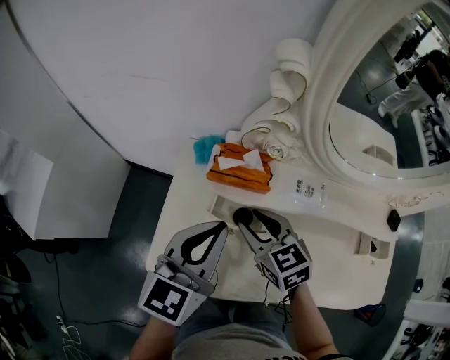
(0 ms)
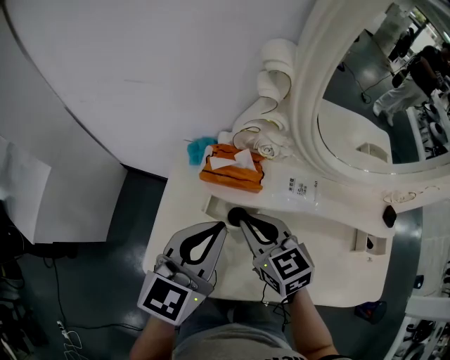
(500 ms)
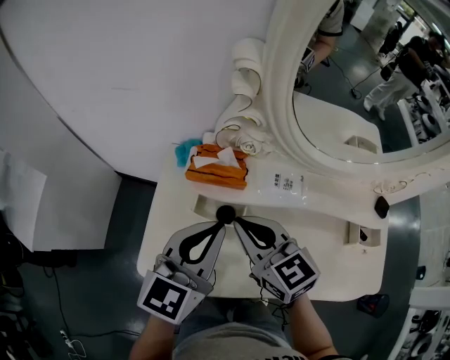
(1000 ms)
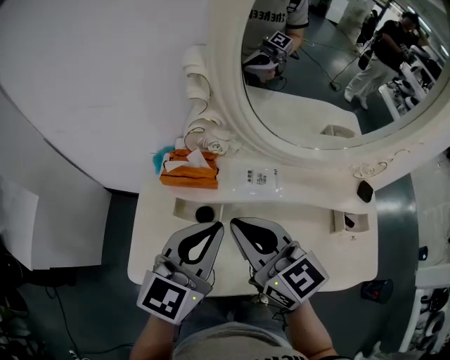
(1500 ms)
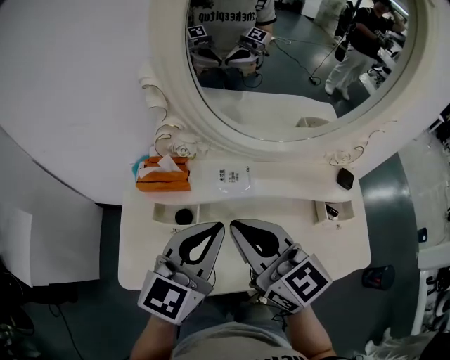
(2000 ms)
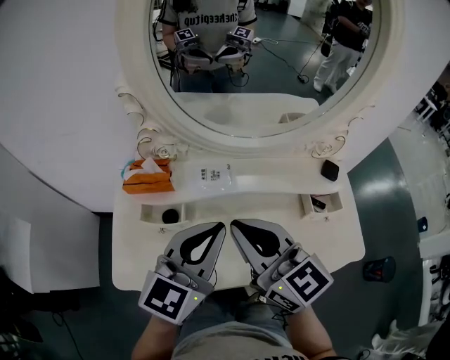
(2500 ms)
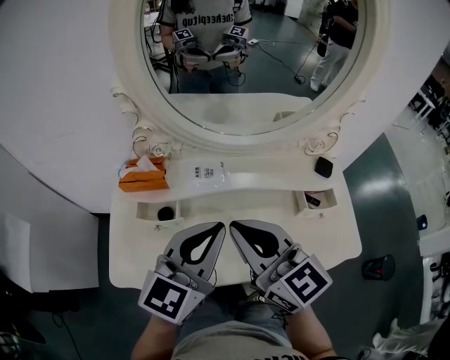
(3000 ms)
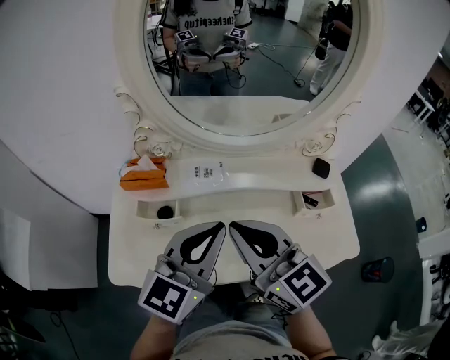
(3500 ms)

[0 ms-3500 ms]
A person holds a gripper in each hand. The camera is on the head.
0 ms to 2000 ms: The left gripper moves to the right, roughly 15 cm, while the right gripper shifts some 25 cm upward, to the right and backward, rotates approximately 30 degrees, and closes its fingers.
2000 ms to 3500 ms: Both grippers move to the right, roughly 5 cm.

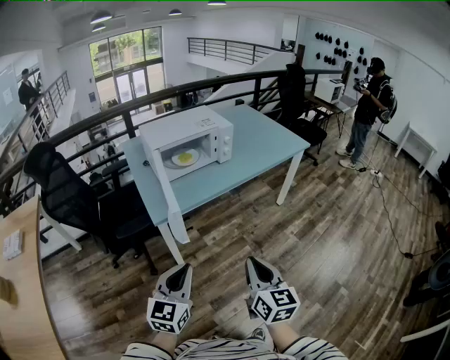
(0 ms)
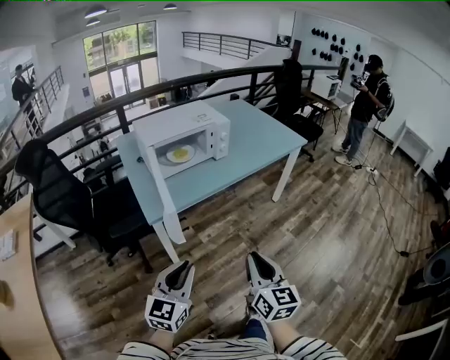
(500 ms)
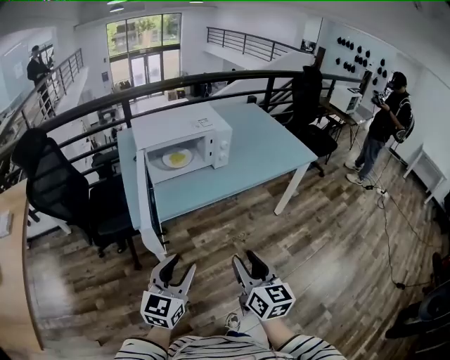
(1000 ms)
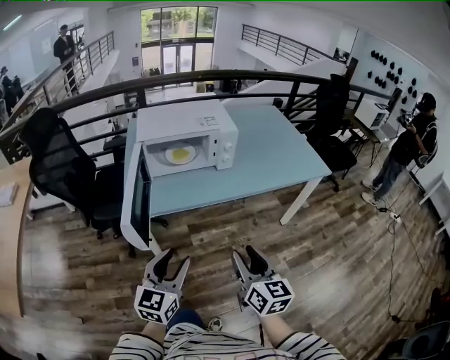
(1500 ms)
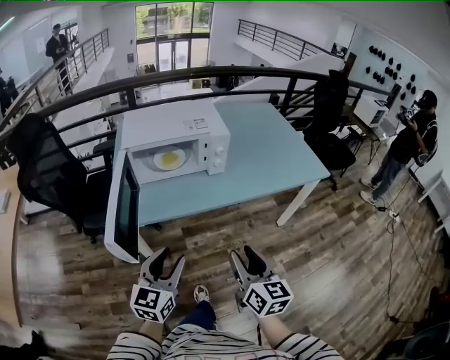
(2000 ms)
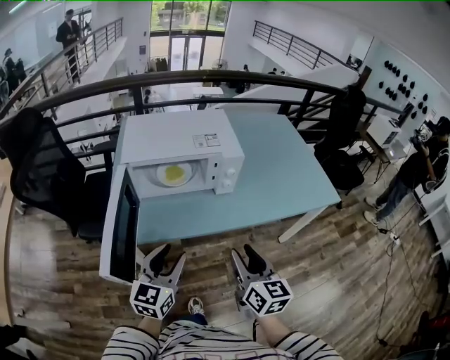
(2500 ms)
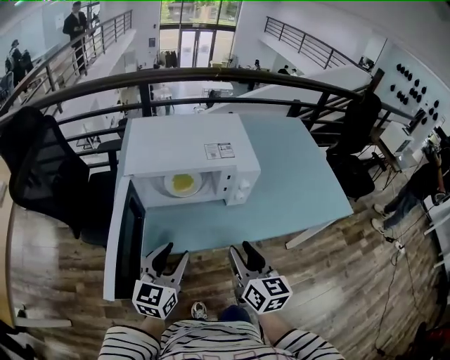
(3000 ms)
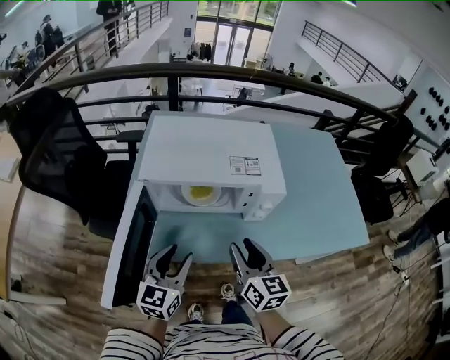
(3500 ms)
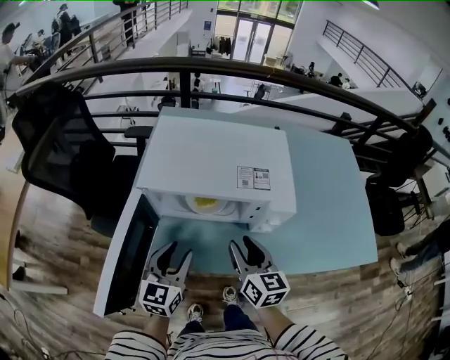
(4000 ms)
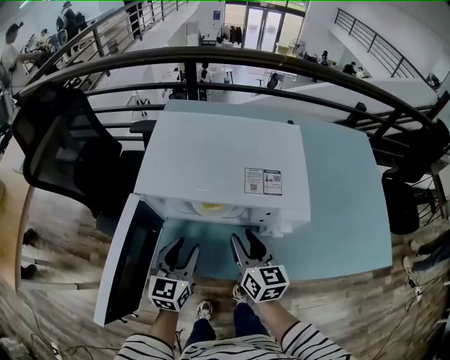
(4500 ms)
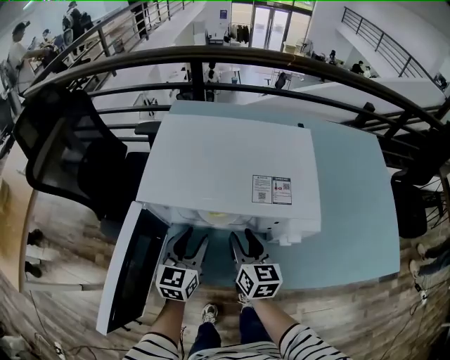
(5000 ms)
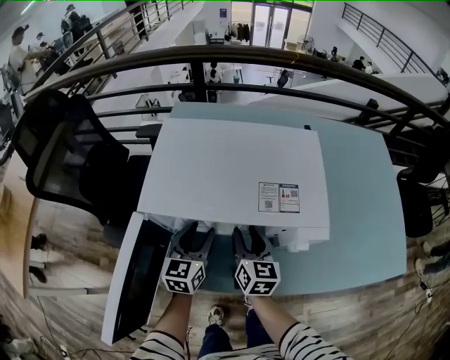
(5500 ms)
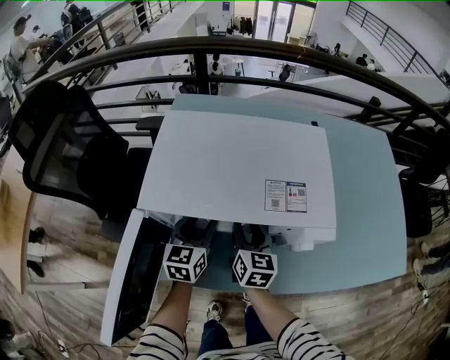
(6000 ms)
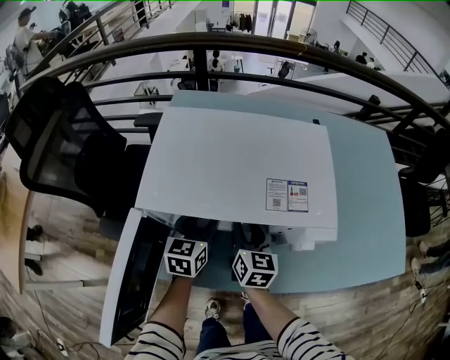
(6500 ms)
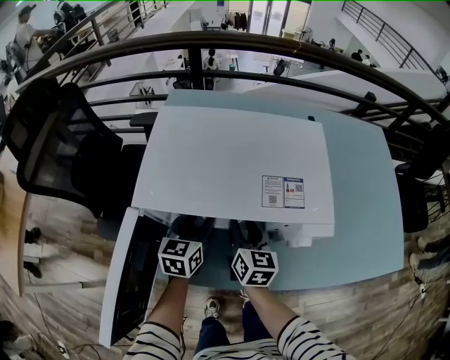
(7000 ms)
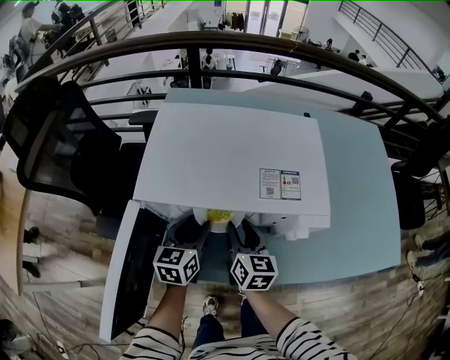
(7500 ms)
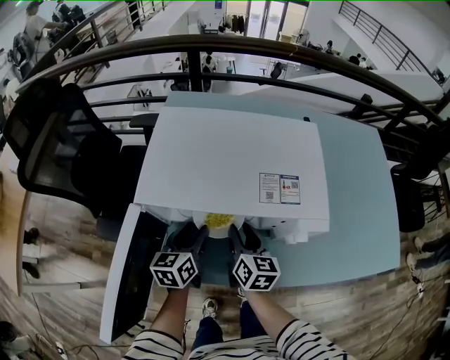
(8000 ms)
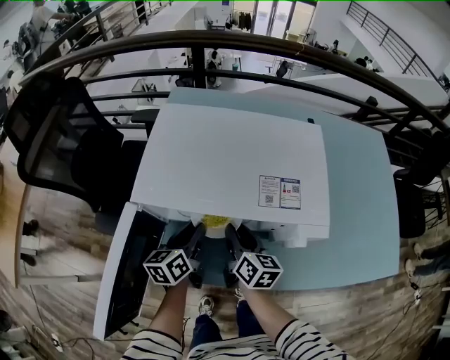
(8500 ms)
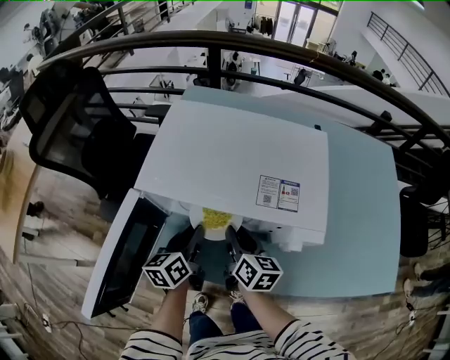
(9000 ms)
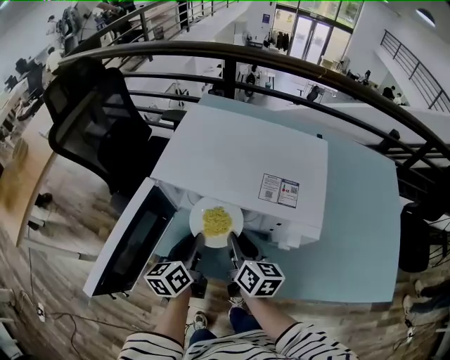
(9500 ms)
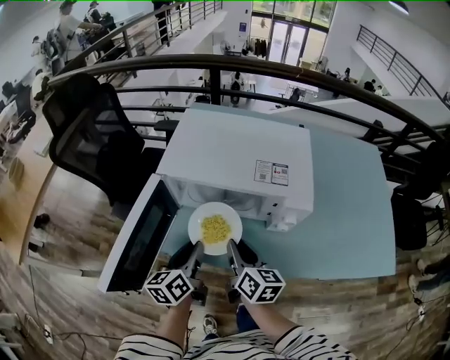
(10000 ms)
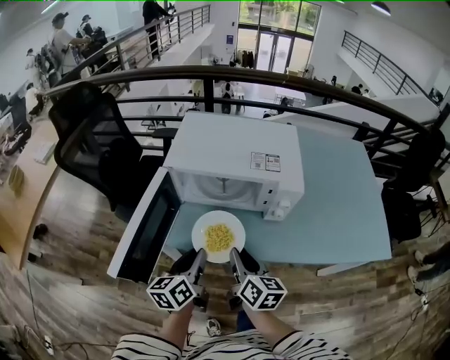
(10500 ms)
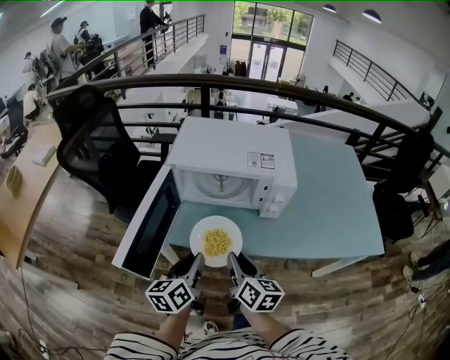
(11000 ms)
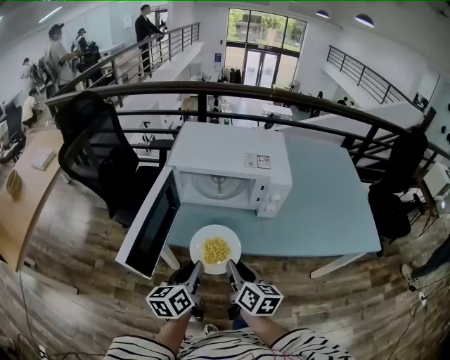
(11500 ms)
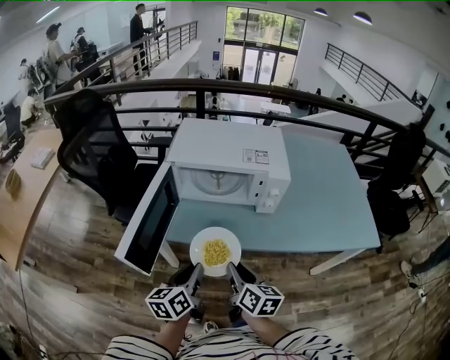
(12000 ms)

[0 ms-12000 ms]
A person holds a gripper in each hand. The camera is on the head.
0 ms to 2000 ms: Both grippers travel together forward and to the right, about 30 cm. The right gripper opens its fingers. Meanwhile the left gripper opens up.
2000 ms to 4000 ms: Both grippers travel together forward, about 30 cm. The left gripper rotates some 20 degrees; the right gripper turns by about 20 degrees.
4000 ms to 6000 ms: The two grippers go roughly 20 cm forward and downward.
6000 ms to 8000 ms: There are only small adjustments of the grippers.
8000 ms to 10000 ms: Both grippers move backward and upward, approximately 15 cm. The left gripper closes up.
10000 ms to 12000 ms: Both grippers travel together backward, roughly 15 cm.

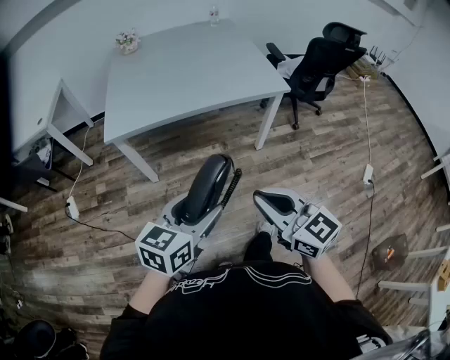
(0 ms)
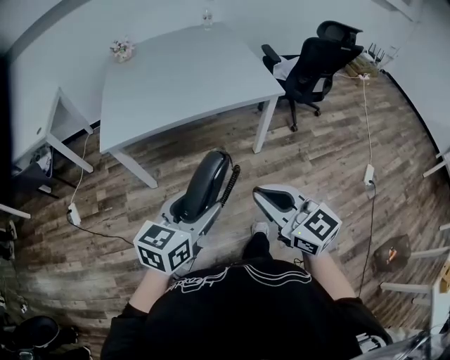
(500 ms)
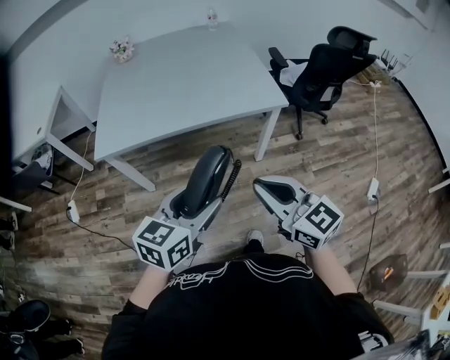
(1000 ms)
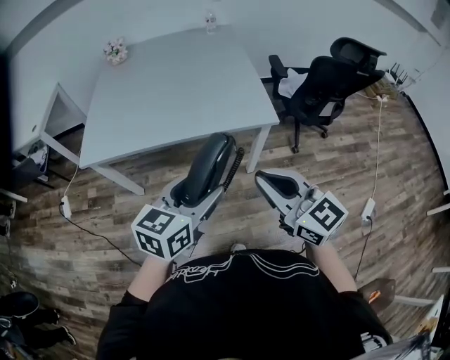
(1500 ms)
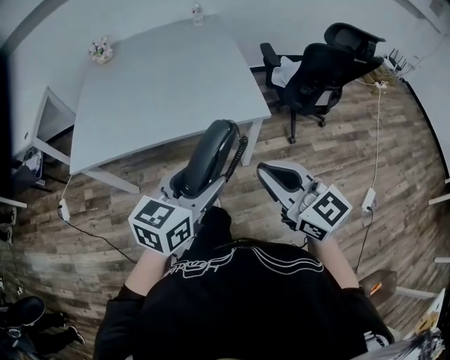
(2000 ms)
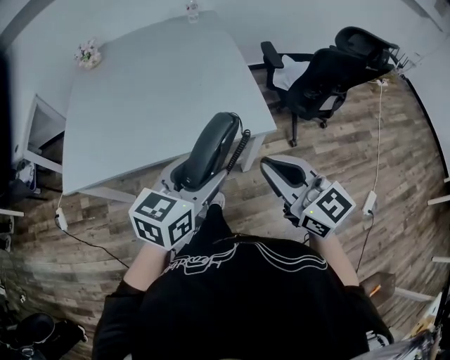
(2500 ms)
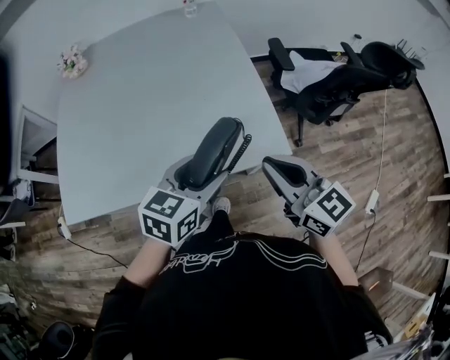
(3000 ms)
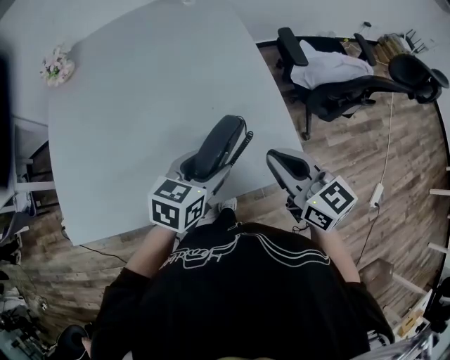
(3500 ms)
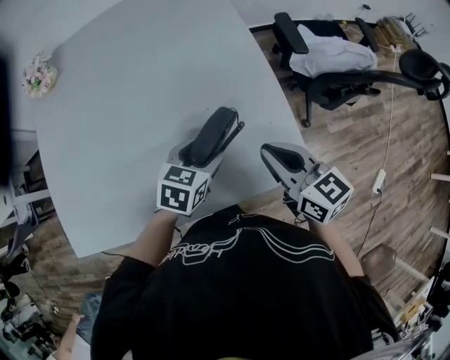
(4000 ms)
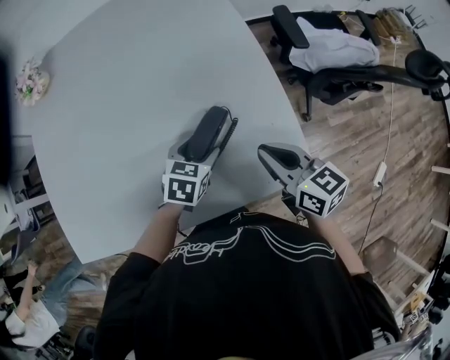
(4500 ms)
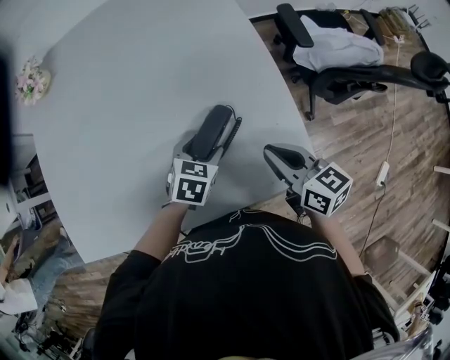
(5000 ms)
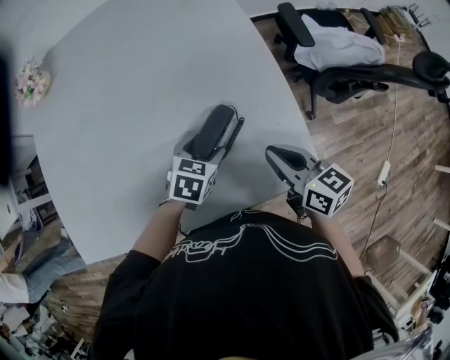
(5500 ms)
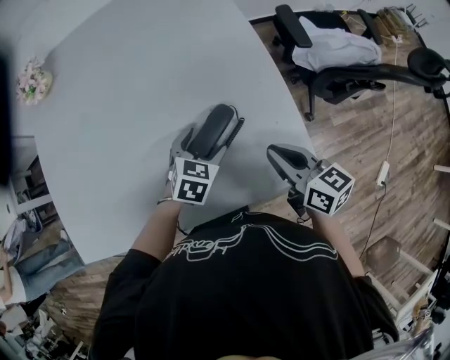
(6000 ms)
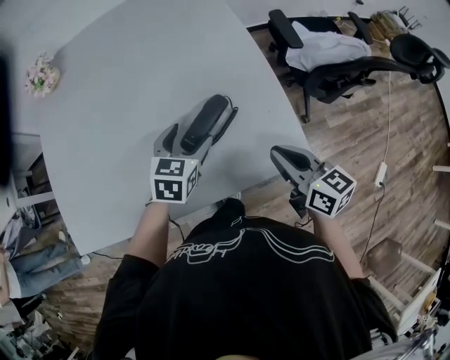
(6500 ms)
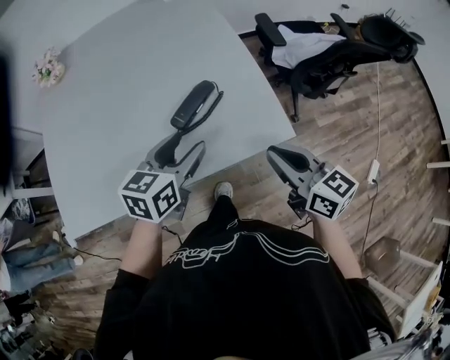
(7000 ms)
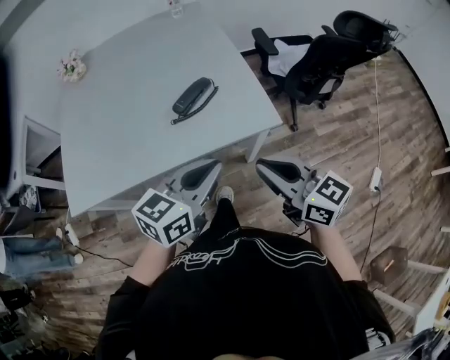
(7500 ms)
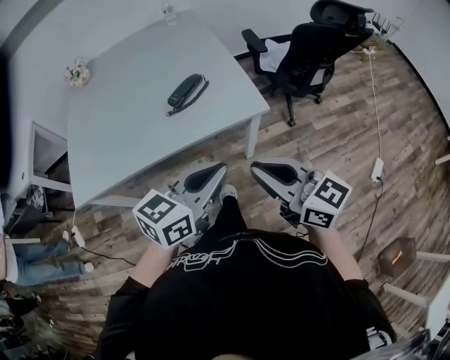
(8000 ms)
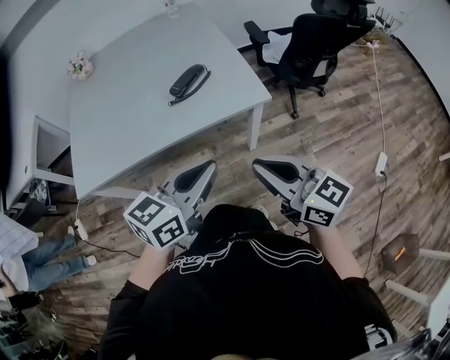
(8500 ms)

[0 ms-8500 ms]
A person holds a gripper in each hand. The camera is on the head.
0 ms to 2000 ms: The right gripper shifts about 35 cm forward and to the right; the left gripper travels to the right and forward by roughly 35 cm.
2000 ms to 4000 ms: The two grippers travel together, forward, about 40 cm. The right gripper rotates some 20 degrees. The left gripper travels downward by some 20 cm, and rotates roughly 30 degrees.
4000 ms to 6500 ms: The right gripper moves approximately 5 cm; the left gripper goes downward and returns, approximately 5 cm each way.
6500 ms to 8500 ms: The right gripper heads backward, covering about 35 cm, and turns by roughly 20 degrees. The left gripper moves backward and upward, about 40 cm, swivels about 30 degrees, and closes its fingers.

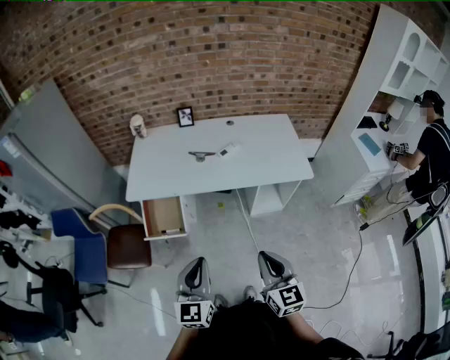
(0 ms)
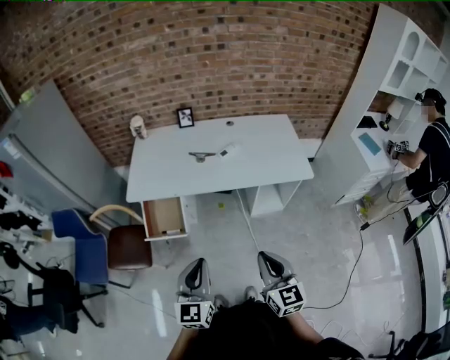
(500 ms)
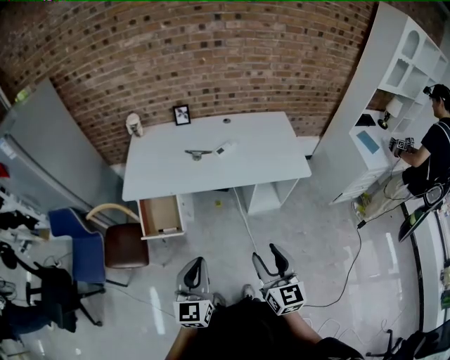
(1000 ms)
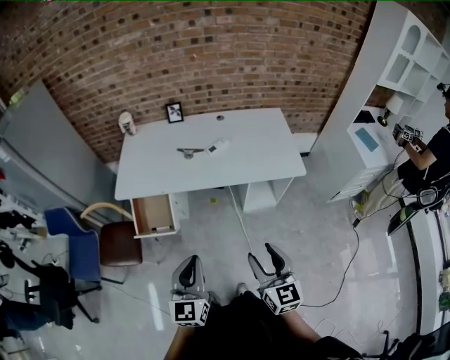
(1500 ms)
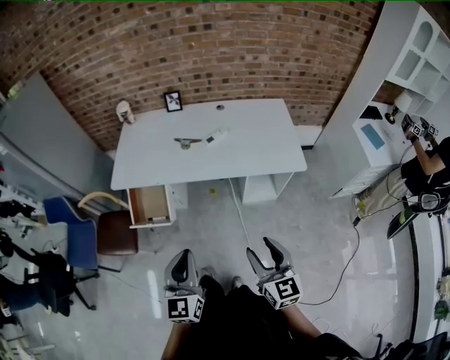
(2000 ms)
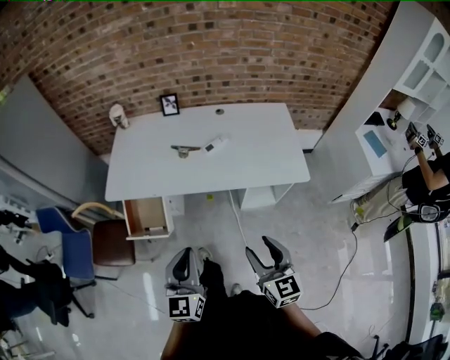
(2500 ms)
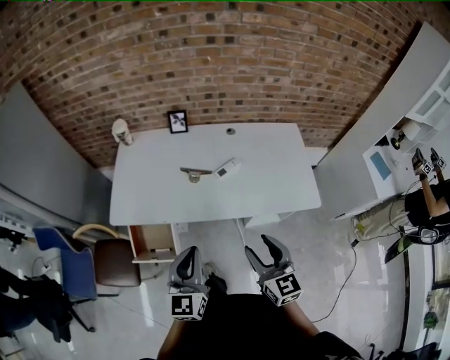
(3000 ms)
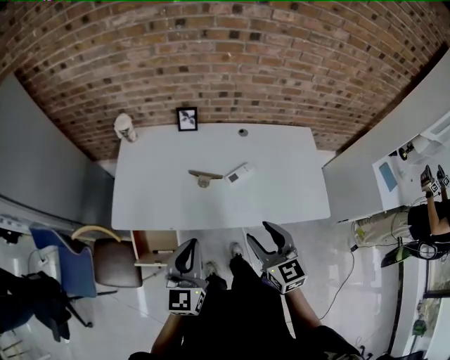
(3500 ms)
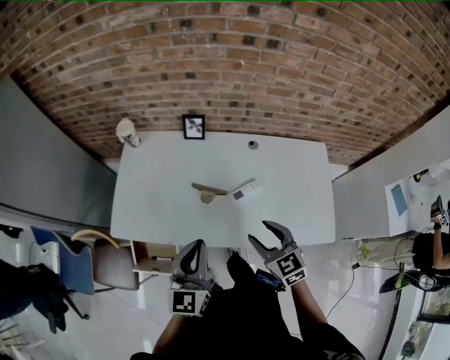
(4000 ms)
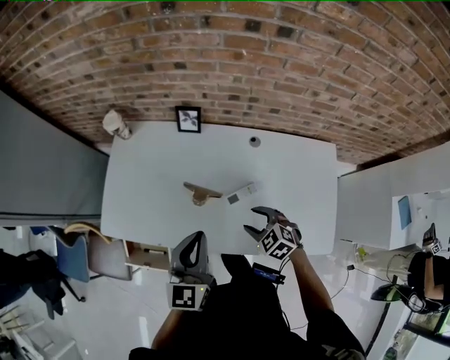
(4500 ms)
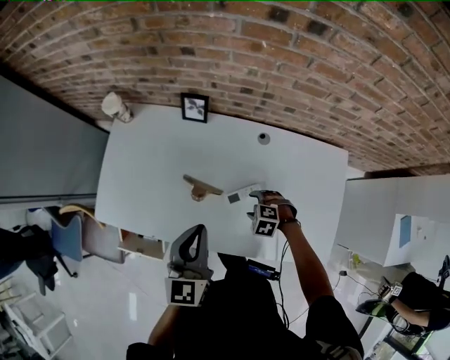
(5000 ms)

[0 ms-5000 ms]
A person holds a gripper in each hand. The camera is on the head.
0 ms to 2500 ms: Both grippers travel together forward and to the right, roughly 15 cm. The right gripper opens up.
2500 ms to 5000 ms: The pair of grippers is taken approximately 50 cm. The right gripper angles its fingers downward, by roughly 60 degrees.
